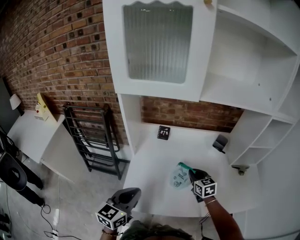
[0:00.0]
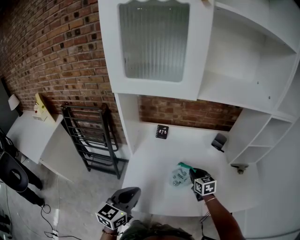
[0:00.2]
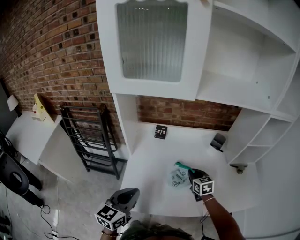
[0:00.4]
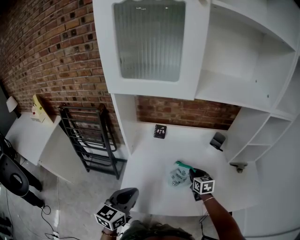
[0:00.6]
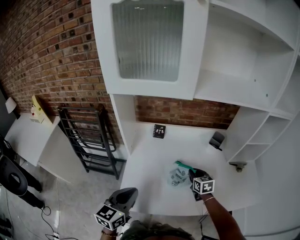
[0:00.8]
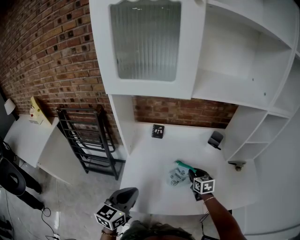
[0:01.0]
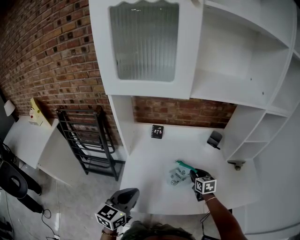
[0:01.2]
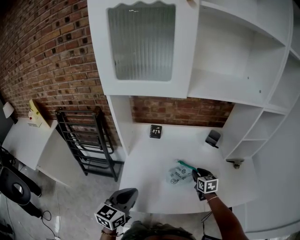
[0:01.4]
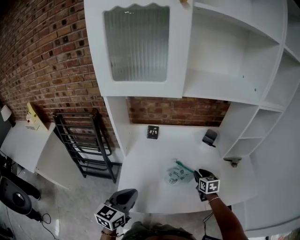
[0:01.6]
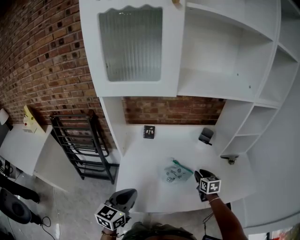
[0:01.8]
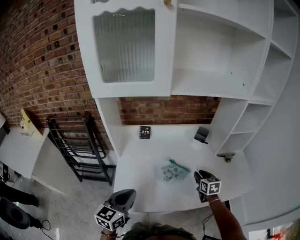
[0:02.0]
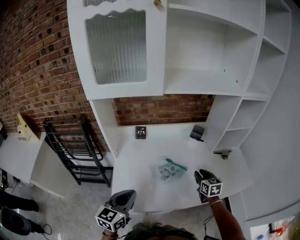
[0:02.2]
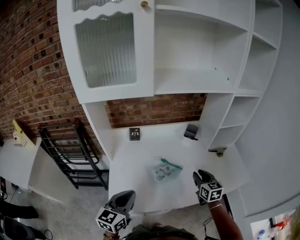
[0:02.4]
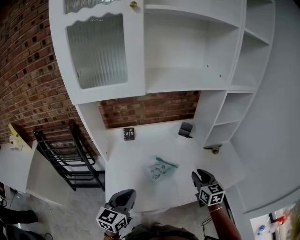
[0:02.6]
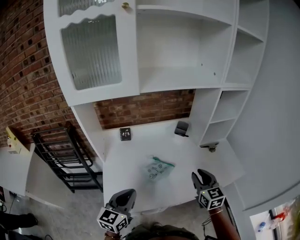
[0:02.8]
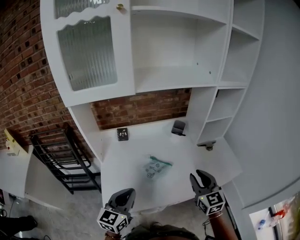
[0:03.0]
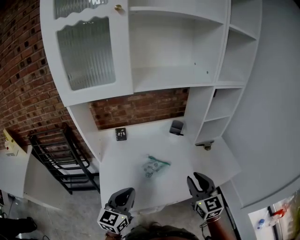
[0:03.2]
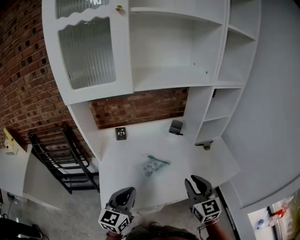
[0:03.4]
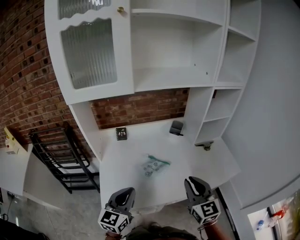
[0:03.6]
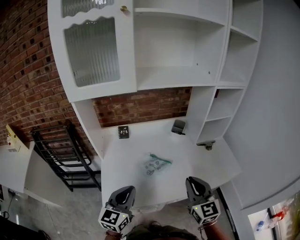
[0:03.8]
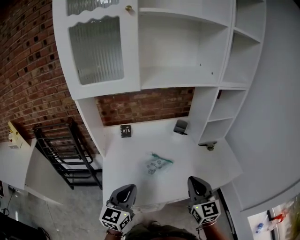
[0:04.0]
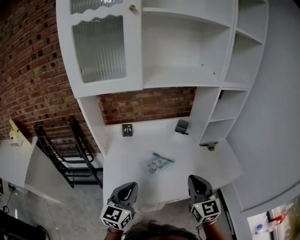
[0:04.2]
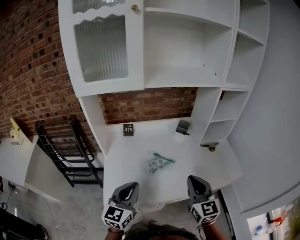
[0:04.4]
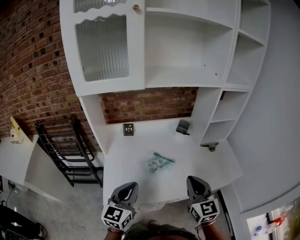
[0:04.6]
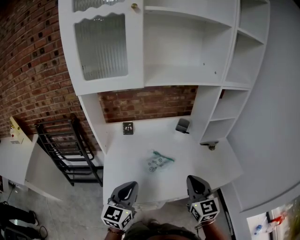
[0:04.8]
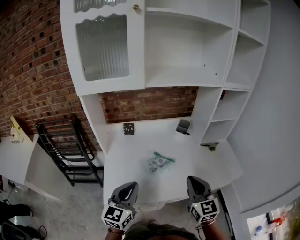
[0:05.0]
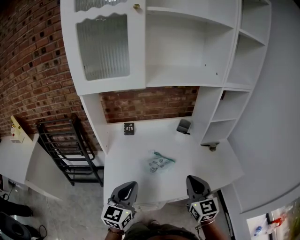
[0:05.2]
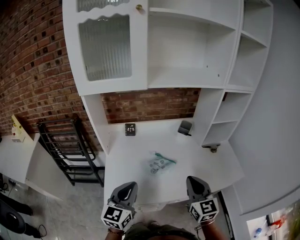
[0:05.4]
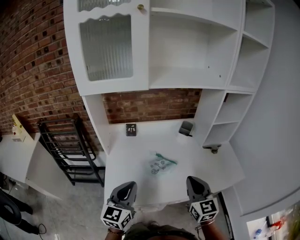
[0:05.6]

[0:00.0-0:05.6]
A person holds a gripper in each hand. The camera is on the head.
0:00.0 to 0:01.4: The right gripper travels to the right by about 5 cm.
0:01.4 to 0:02.8: The right gripper is displaced upward, backward and to the right by approximately 25 cm, and rotates about 20 degrees, while the left gripper travels to the right by some 10 cm.
0:02.8 to 0:04.2: The right gripper shifts roughly 10 cm backward and upward.
0:04.2 to 0:05.6: There are only small adjustments of the grippers.

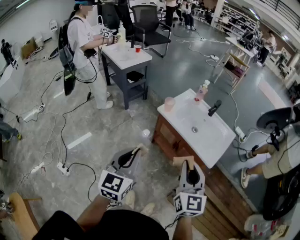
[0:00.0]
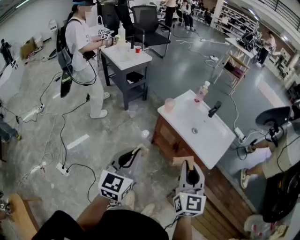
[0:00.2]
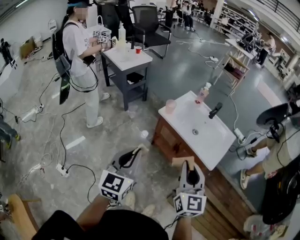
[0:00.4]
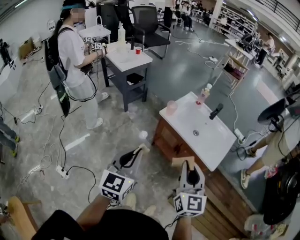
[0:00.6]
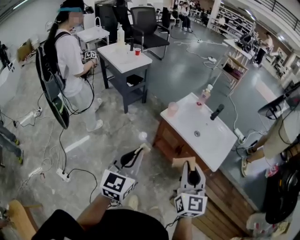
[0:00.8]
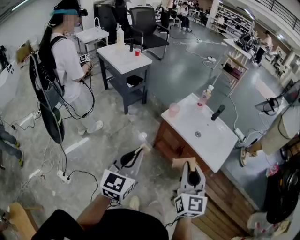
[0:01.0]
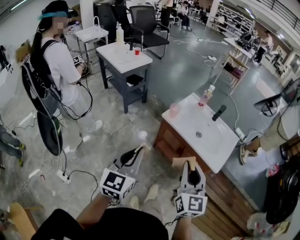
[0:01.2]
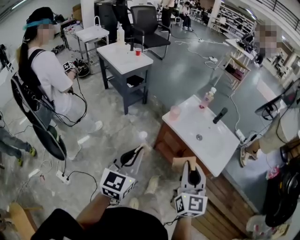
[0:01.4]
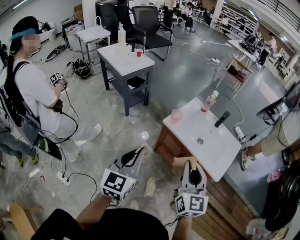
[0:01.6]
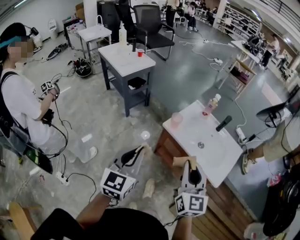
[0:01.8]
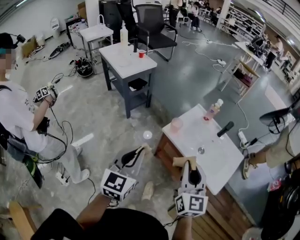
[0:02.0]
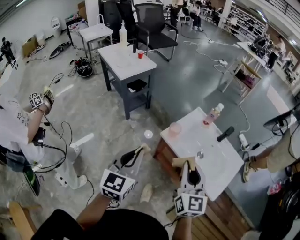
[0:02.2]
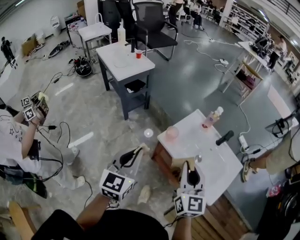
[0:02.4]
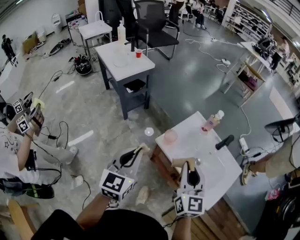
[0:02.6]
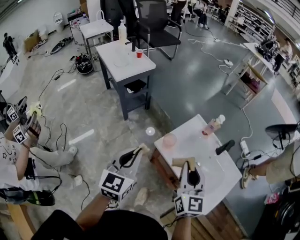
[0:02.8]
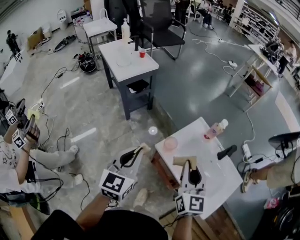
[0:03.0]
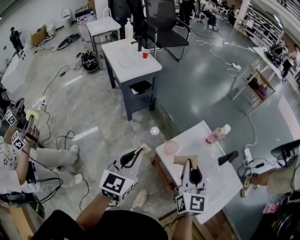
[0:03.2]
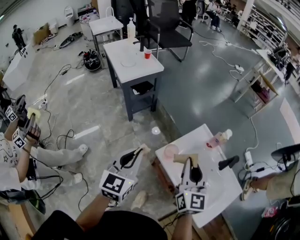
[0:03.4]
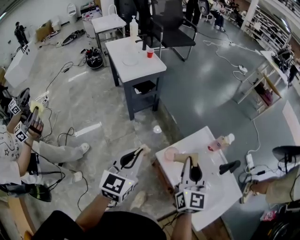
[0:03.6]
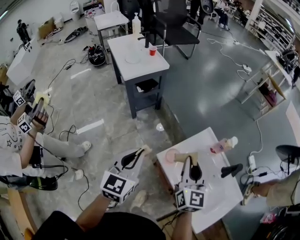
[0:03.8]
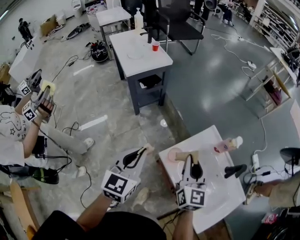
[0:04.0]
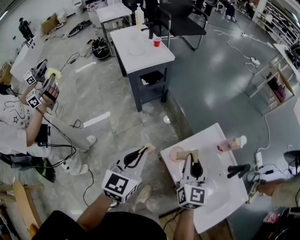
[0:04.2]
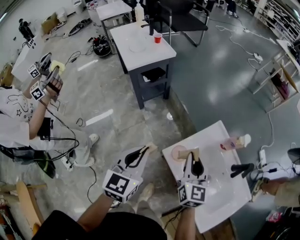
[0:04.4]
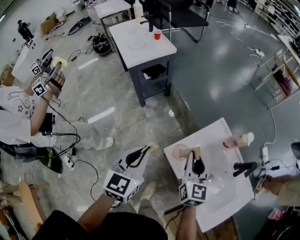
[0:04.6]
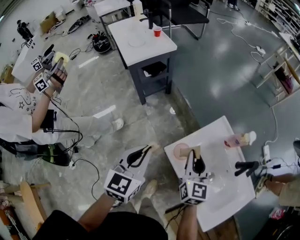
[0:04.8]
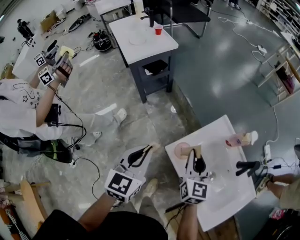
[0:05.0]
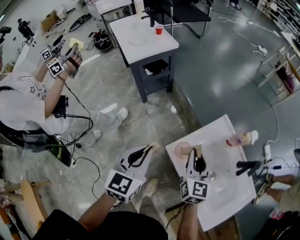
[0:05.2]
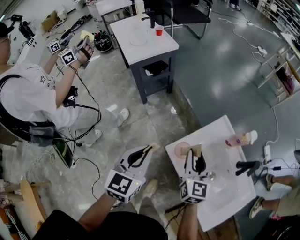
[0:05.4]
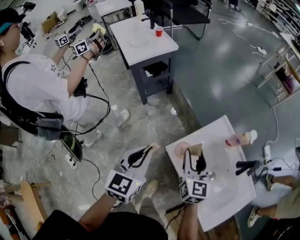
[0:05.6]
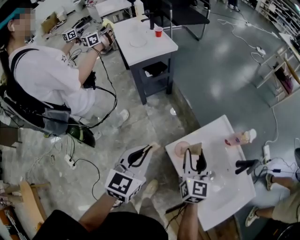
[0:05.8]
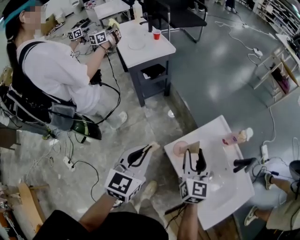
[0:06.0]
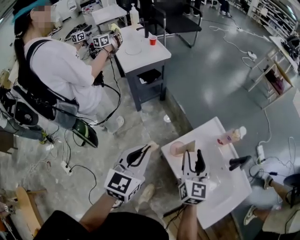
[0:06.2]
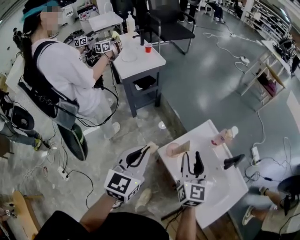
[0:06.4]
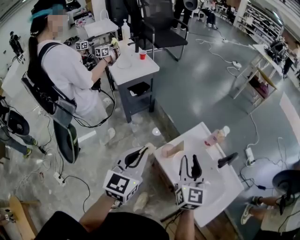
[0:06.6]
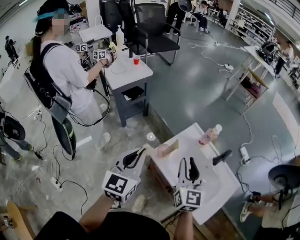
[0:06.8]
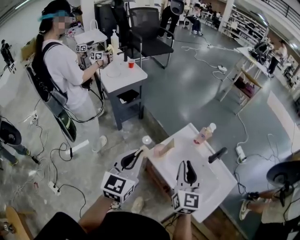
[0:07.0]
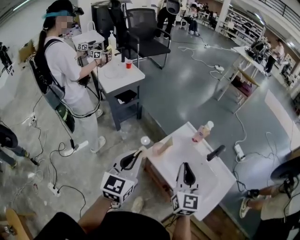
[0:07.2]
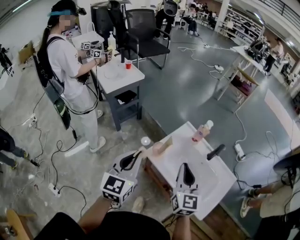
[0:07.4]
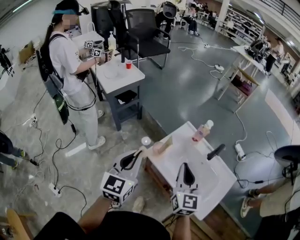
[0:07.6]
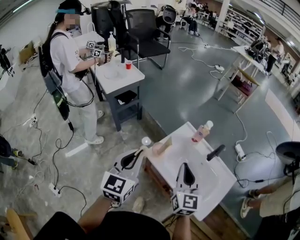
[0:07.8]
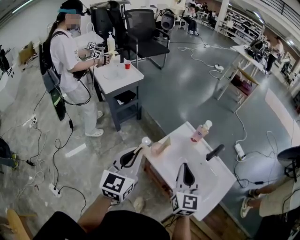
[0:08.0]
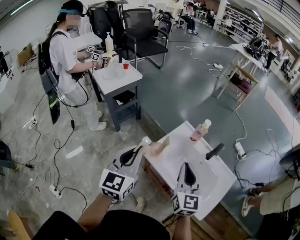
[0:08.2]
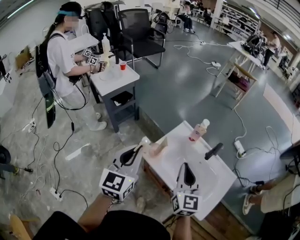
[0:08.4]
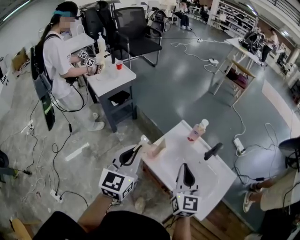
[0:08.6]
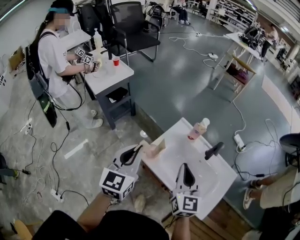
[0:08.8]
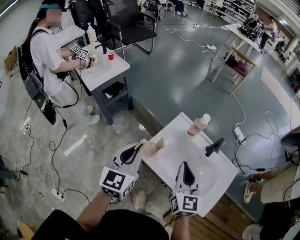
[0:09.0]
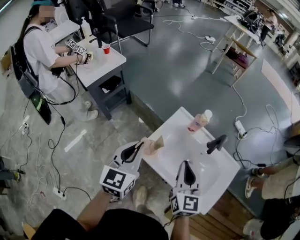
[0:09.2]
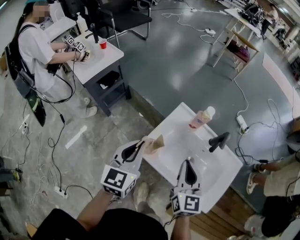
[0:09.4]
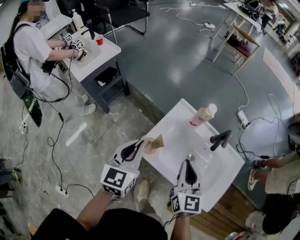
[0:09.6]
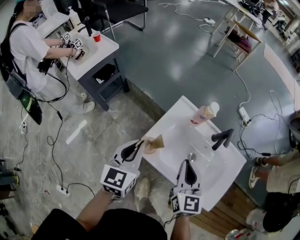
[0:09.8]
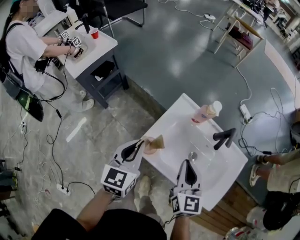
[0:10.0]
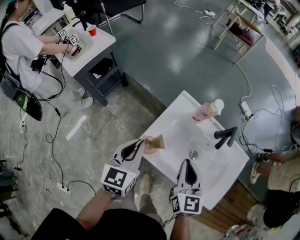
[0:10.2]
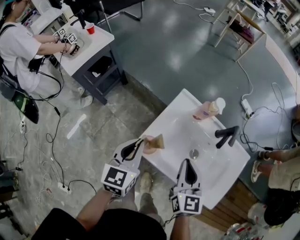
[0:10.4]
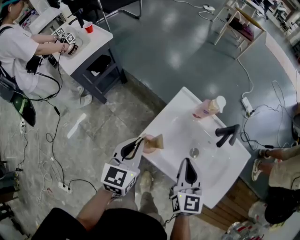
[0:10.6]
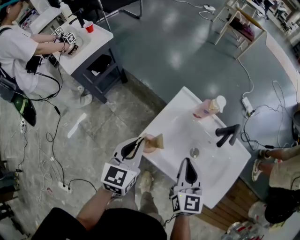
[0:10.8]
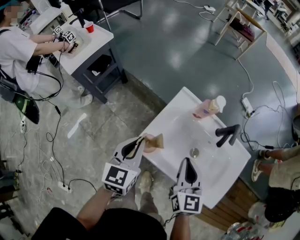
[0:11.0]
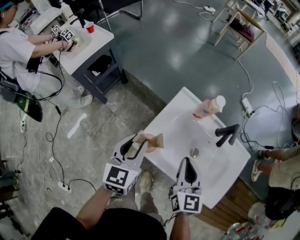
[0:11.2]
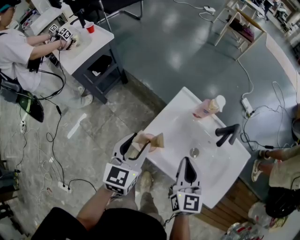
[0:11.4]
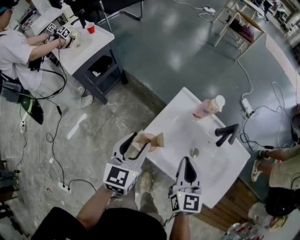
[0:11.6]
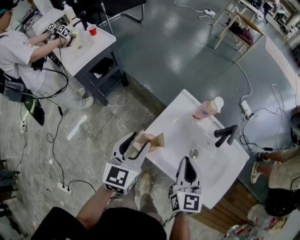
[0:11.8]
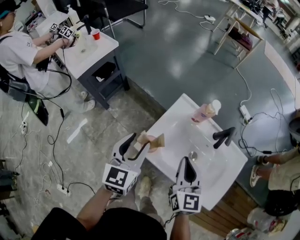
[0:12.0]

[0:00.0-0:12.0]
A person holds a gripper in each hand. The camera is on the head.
0:00.0 to 0:01.6: Both grippers travel together forward and to the left, some 10 cm.
0:01.6 to 0:03.0: Both grippers move forward, roughly 25 cm.
0:03.0 to 0:04.4: The left gripper is displaced forward and downward by about 10 cm, while the right gripper travels forward and downward by approximately 20 cm.
0:04.4 to 0:06.0: The right gripper opens its fingers.
0:06.0 to 0:07.6: The left gripper moves upward and backward, roughly 10 cm; the right gripper shifts roughly 20 cm backward, upward and to the right, and closes.
0:07.6 to 0:09.0: The right gripper shifts by about 5 cm. Meanwhile the left gripper heads forward, covering roughly 10 cm.
0:09.0 to 0:10.4: The right gripper moves downward, some 10 cm, while the left gripper moves downward and forward, approximately 15 cm.
0:10.4 to 0:12.0: The left gripper opens its fingers.

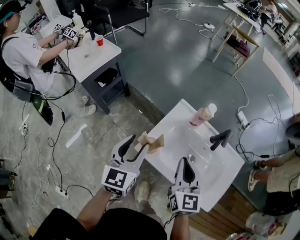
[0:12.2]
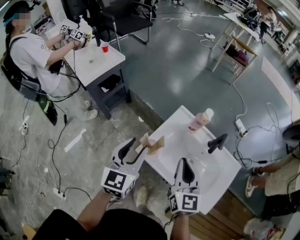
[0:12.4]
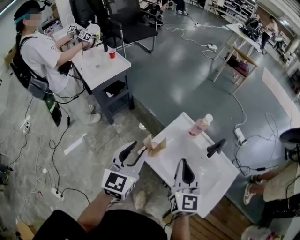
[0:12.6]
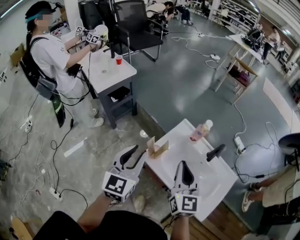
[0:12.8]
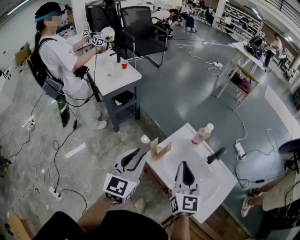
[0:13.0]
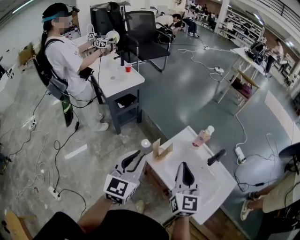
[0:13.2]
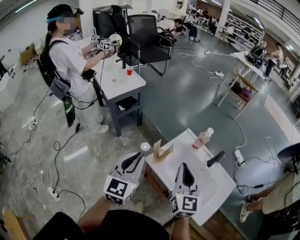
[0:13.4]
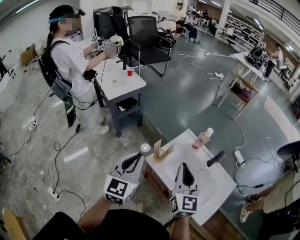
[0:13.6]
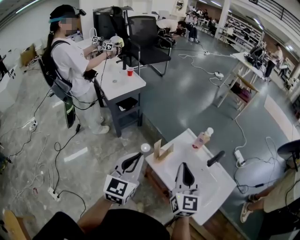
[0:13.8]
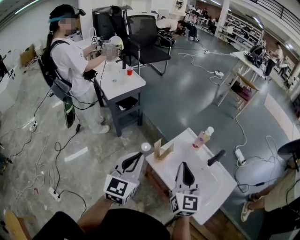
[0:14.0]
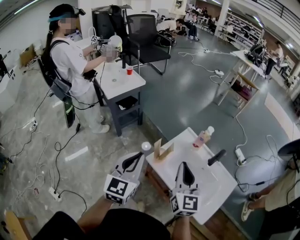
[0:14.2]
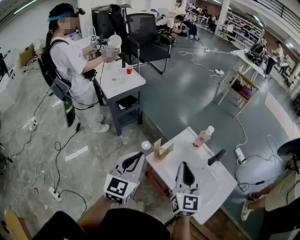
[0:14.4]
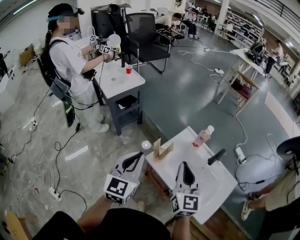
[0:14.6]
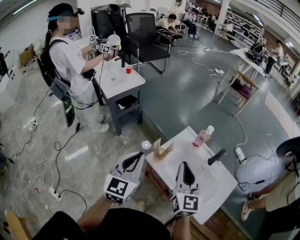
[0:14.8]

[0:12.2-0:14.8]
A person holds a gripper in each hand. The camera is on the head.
0:12.2 to 0:13.4: The left gripper goes about 15 cm backward and upward, and closes. The right gripper moves upward and backward, some 10 cm.
0:13.4 to 0:14.8: Both grippers stay about where they are.

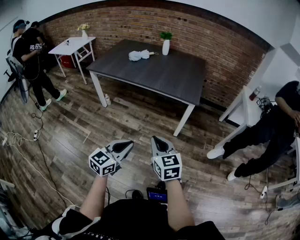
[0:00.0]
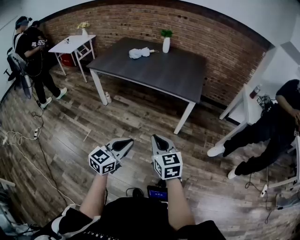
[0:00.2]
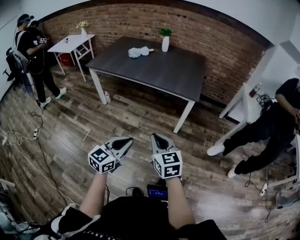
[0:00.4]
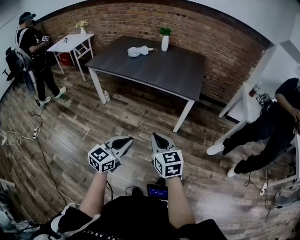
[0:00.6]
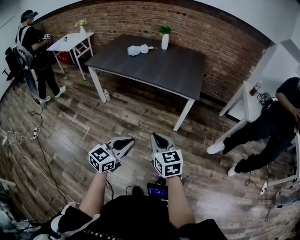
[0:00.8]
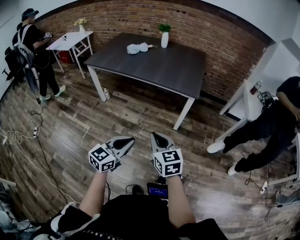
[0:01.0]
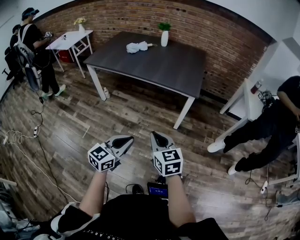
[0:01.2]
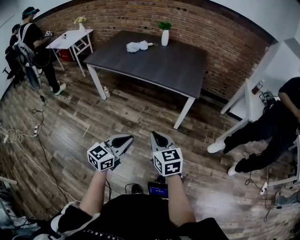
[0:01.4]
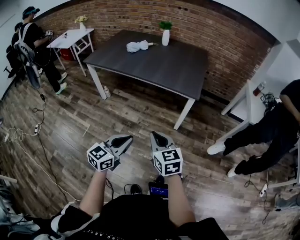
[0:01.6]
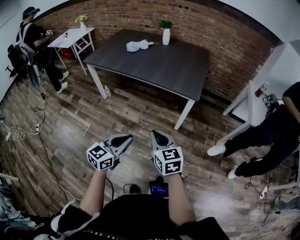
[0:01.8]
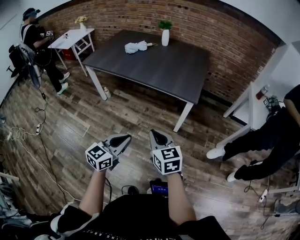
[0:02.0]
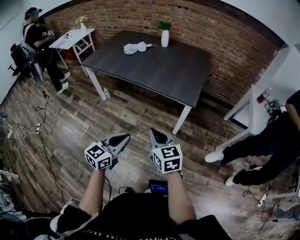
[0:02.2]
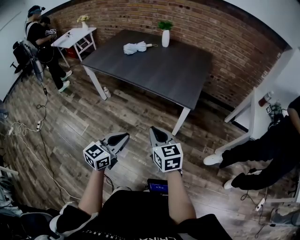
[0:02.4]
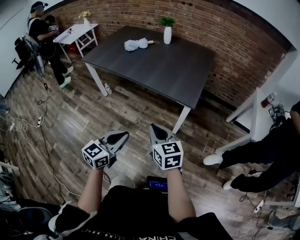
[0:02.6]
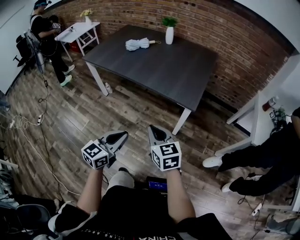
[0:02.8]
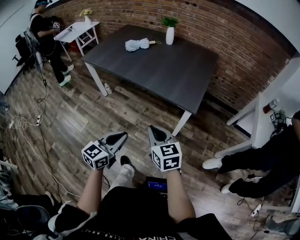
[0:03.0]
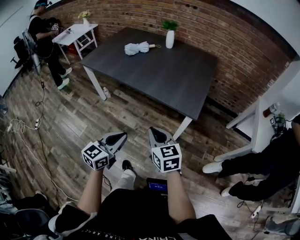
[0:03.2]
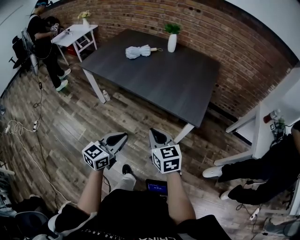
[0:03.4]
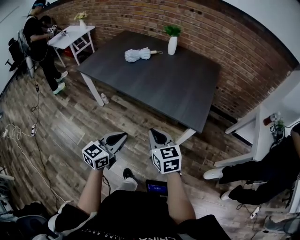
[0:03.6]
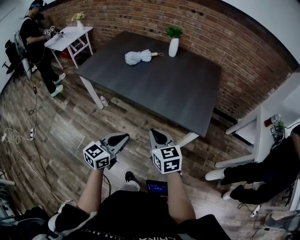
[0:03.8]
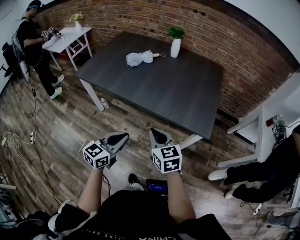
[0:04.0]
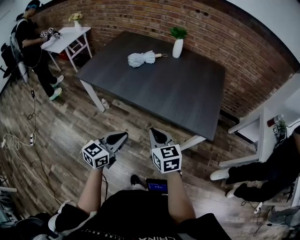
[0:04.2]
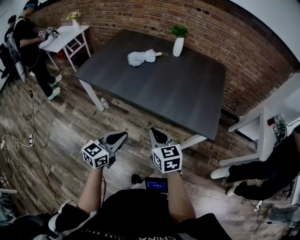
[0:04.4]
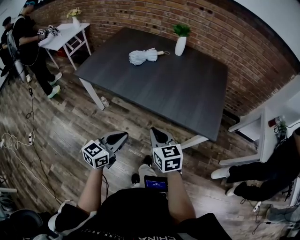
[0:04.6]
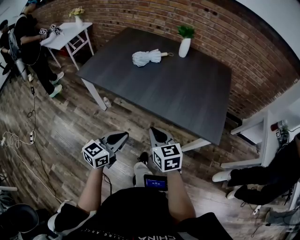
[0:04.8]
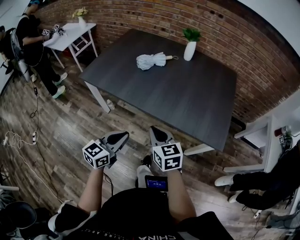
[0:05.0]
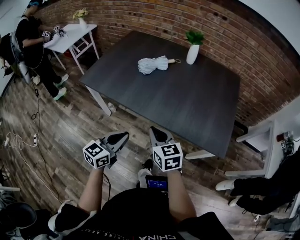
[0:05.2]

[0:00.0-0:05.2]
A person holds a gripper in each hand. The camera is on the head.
0:00.0 to 0:01.8: The two grippers go about 5 cm forward.
0:01.8 to 0:03.4: Both grippers move forward, about 20 cm.
0:03.4 to 0:05.2: Both grippers travel together forward and to the left, about 30 cm.
